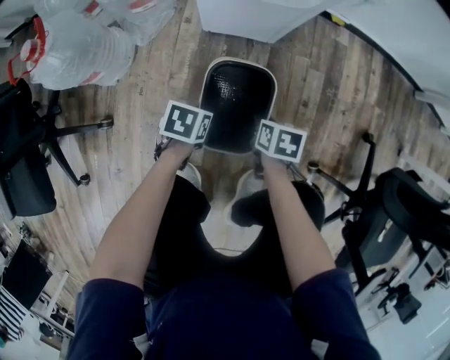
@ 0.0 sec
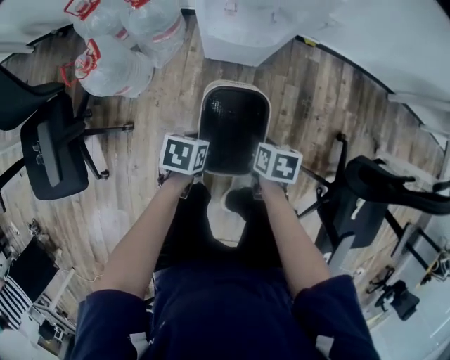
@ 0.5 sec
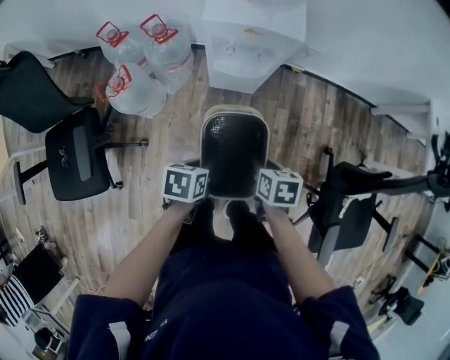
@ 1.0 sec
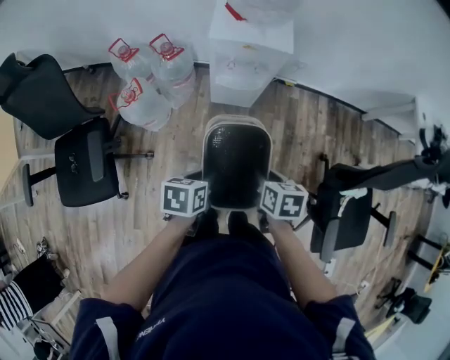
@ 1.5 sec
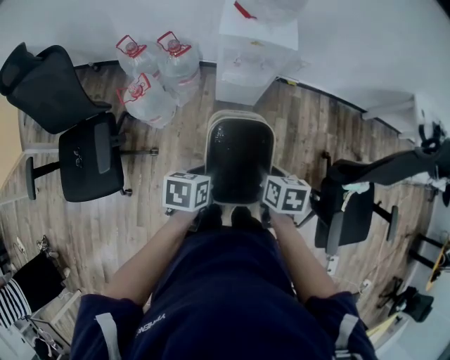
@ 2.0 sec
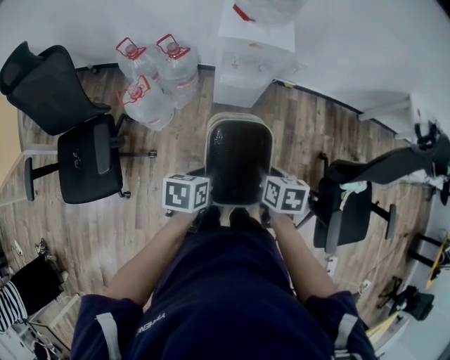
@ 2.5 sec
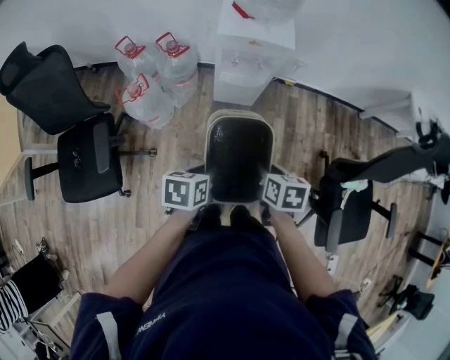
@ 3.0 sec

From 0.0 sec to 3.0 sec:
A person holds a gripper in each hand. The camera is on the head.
From 0.0 sec to 1.5 sec: Both grippers move upward, about 50 cm.
From 1.5 sec to 3.0 sec: The grippers stay close to where they were, moving slightly.

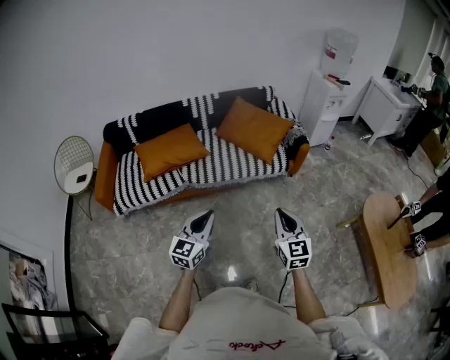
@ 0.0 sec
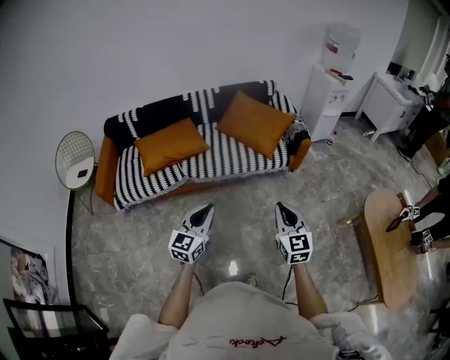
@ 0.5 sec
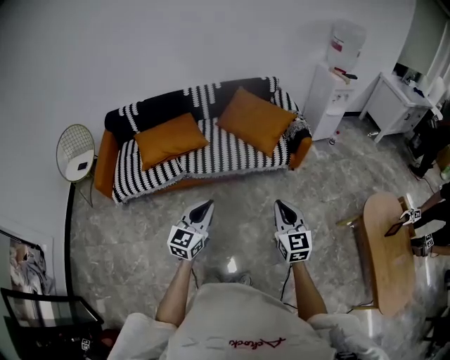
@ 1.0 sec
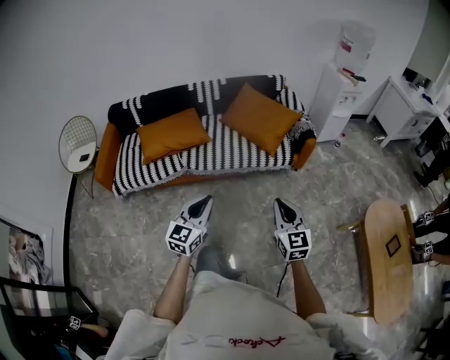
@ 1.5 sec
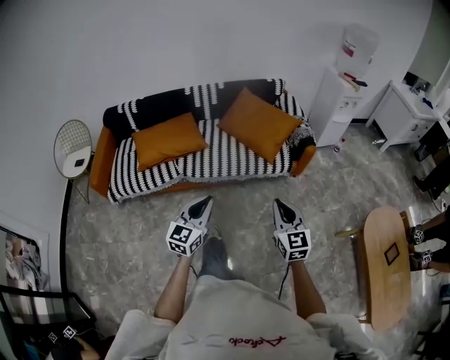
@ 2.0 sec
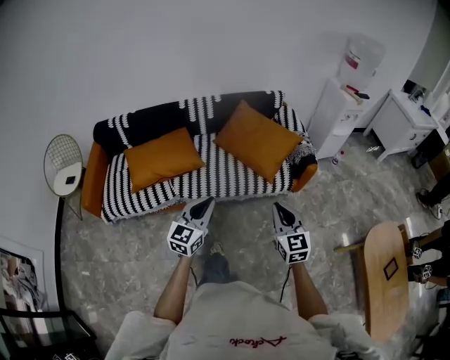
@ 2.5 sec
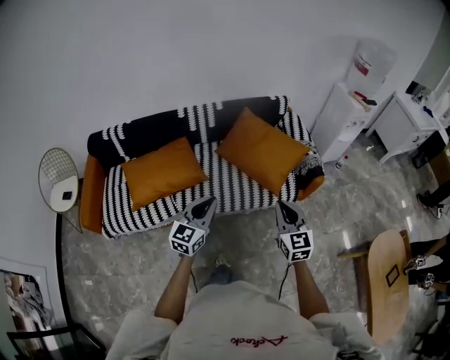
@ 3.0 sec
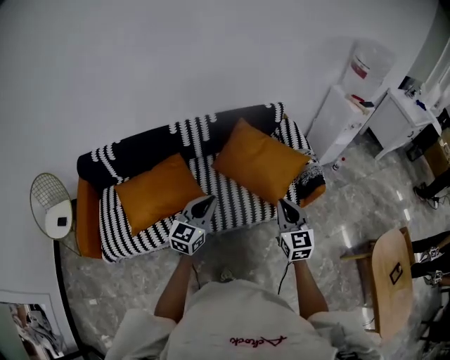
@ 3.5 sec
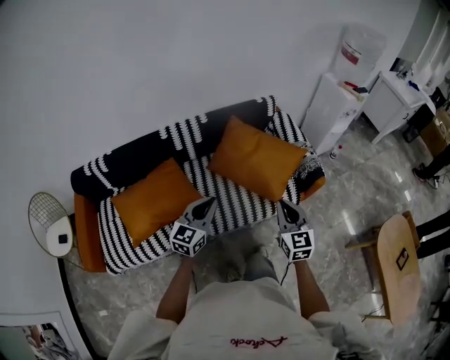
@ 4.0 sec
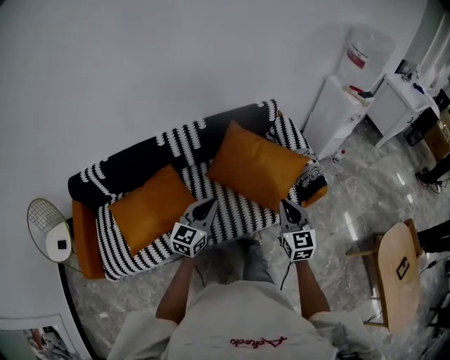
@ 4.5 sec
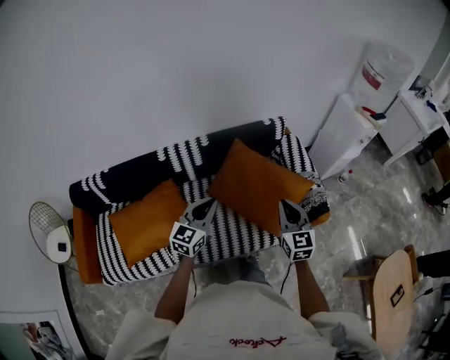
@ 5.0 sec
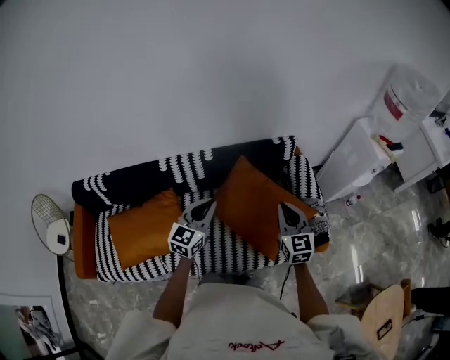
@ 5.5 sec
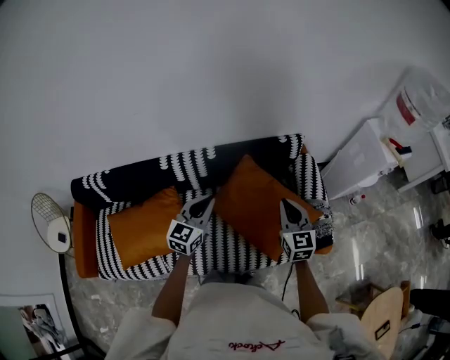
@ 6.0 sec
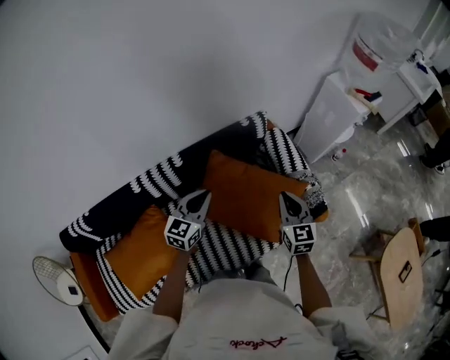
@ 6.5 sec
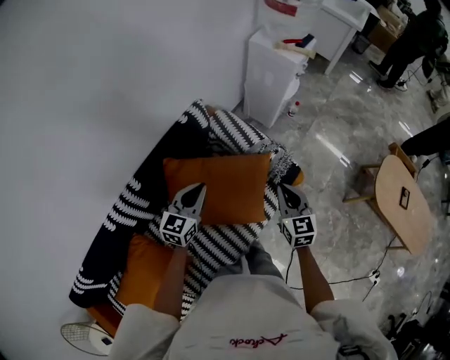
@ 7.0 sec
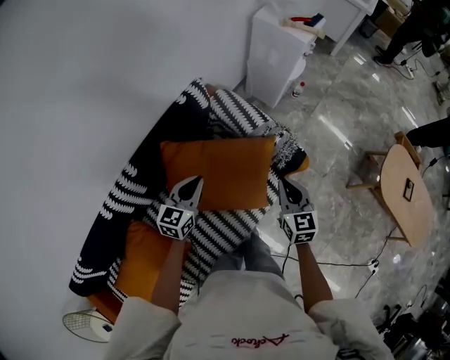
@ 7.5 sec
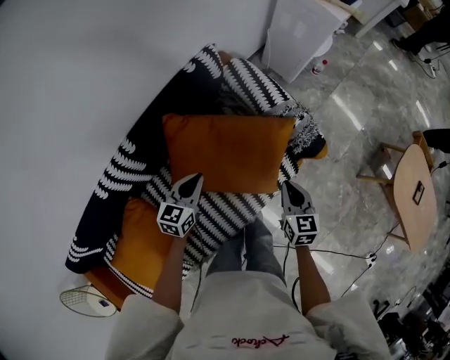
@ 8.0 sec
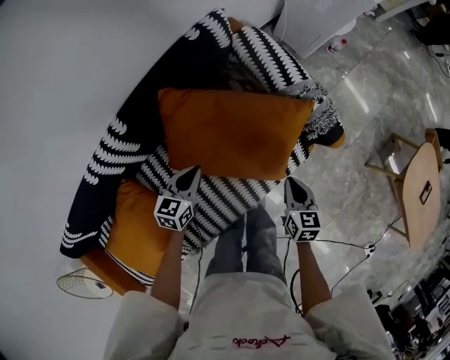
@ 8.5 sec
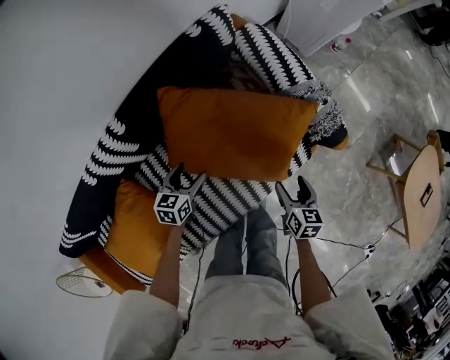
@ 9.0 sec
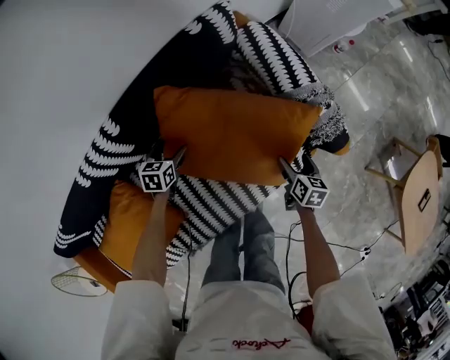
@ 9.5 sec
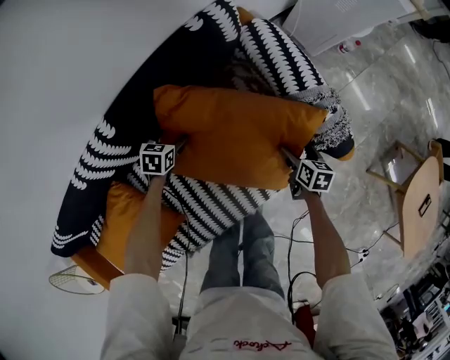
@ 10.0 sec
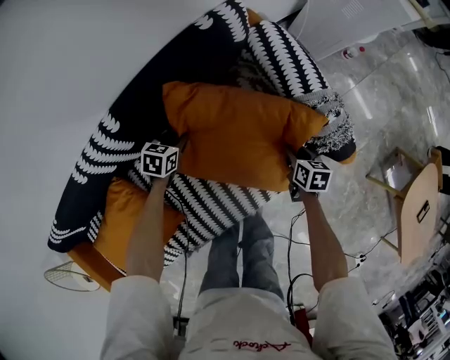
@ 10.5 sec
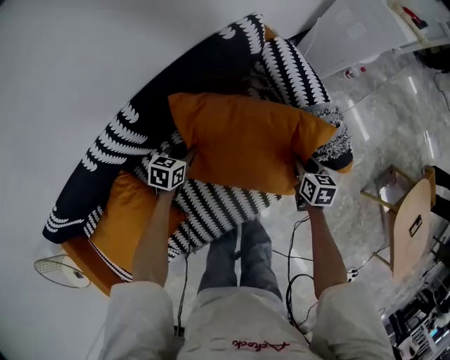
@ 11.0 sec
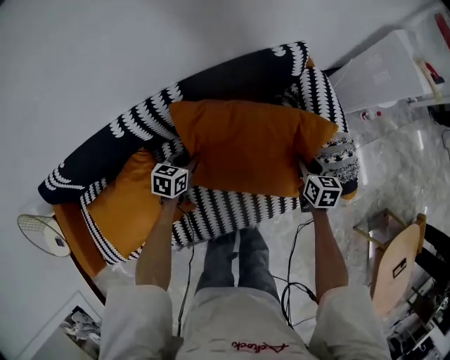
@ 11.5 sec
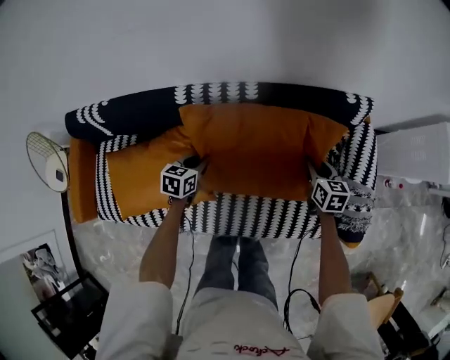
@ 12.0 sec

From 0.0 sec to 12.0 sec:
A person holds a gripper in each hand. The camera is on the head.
From 0.0 sec to 2.0 sec: The left gripper goes about 10 cm forward and to the right, while the right gripper goes approximately 10 cm forward.
From 2.0 sec to 4.0 sec: The two grippers go approximately 40 cm forward.
From 4.0 sec to 6.0 sec: Both grippers travel together forward, some 35 cm.
From 6.0 sec to 8.0 sec: Both grippers travel together downward, approximately 20 cm. The right gripper rotates roughly 50 degrees. Meanwhile the left gripper changes its angle by about 40 degrees.
From 8.0 sec to 10.0 sec: The right gripper shifts approximately 30 cm downward and forward, swivels some 30 degrees, and opens. The left gripper shifts approximately 30 cm downward and to the left, tilts its fingers approximately 30 degrees downward, and opens its fingers.
From 10.0 sec to 12.0 sec: The left gripper moves roughly 35 cm, changes its angle by approximately 40 degrees, and closes up. The right gripper changes place by about 35 cm, twists approximately 40 degrees counterclockwise, seen from behind, and closes its fingers.

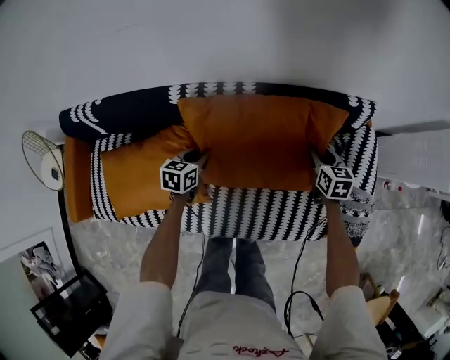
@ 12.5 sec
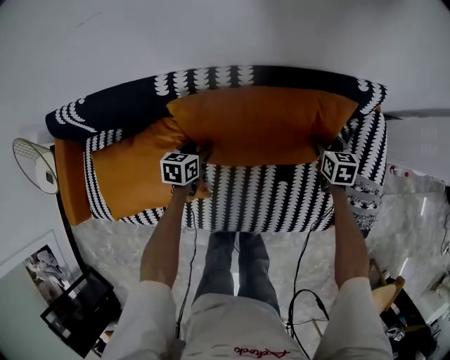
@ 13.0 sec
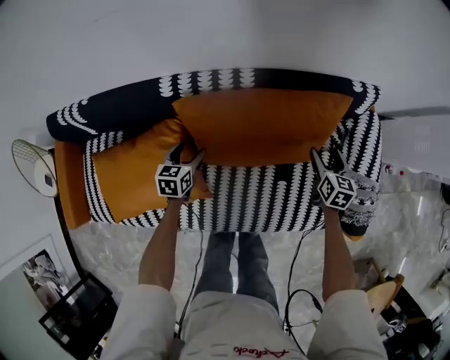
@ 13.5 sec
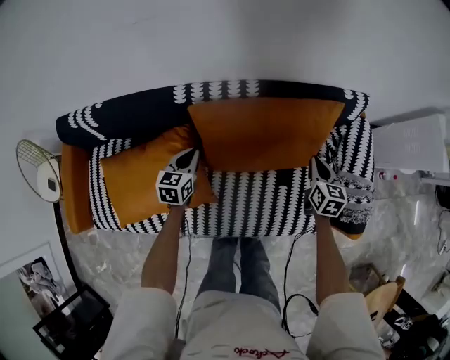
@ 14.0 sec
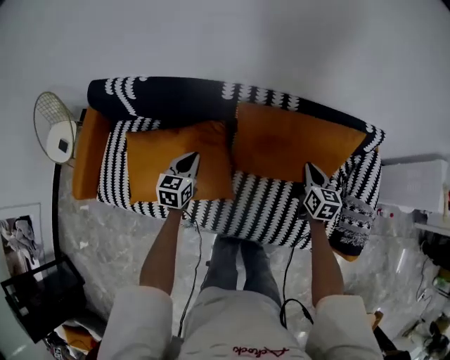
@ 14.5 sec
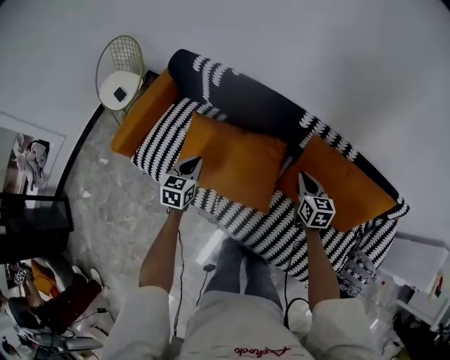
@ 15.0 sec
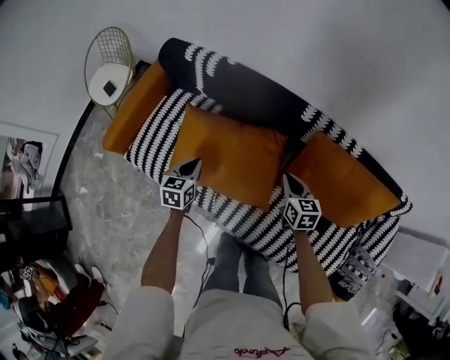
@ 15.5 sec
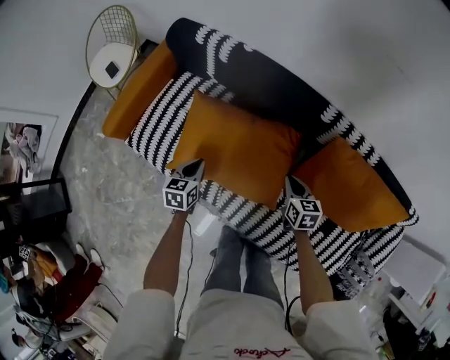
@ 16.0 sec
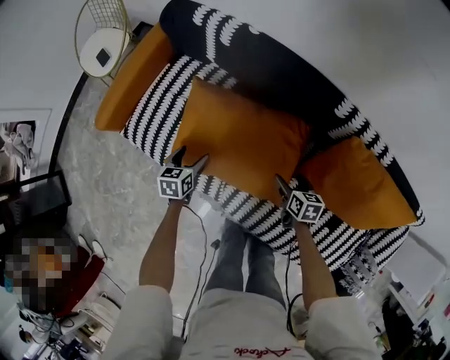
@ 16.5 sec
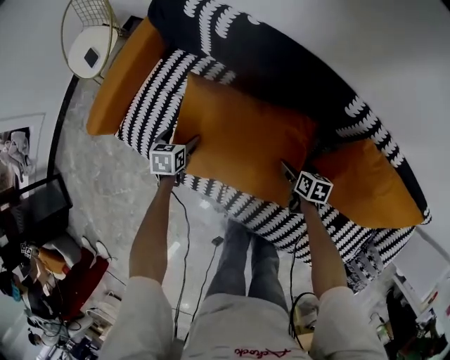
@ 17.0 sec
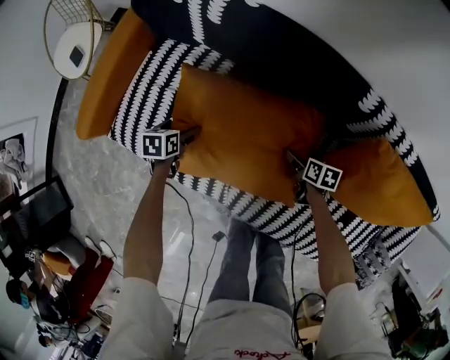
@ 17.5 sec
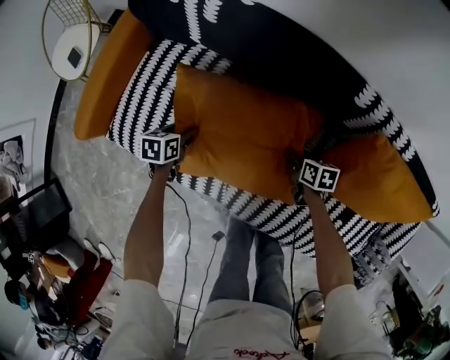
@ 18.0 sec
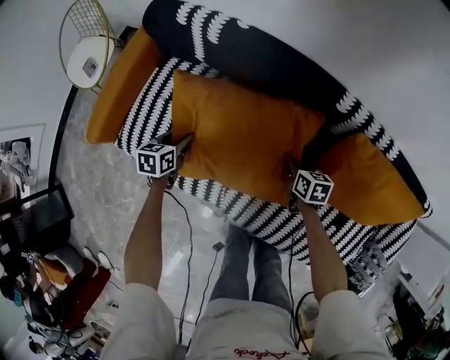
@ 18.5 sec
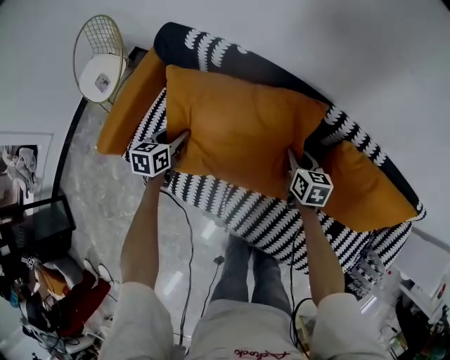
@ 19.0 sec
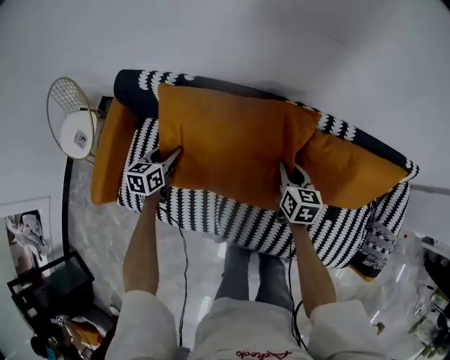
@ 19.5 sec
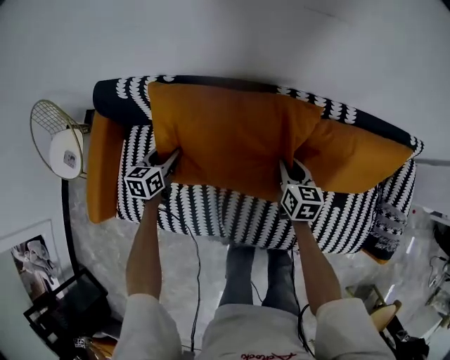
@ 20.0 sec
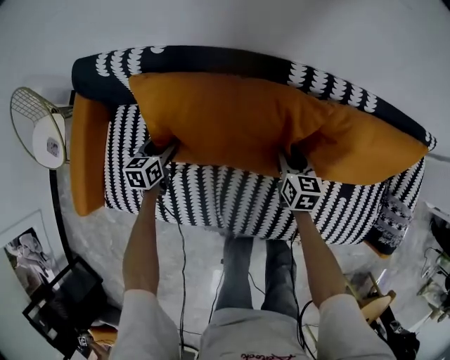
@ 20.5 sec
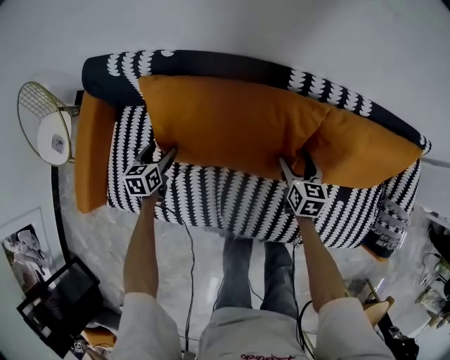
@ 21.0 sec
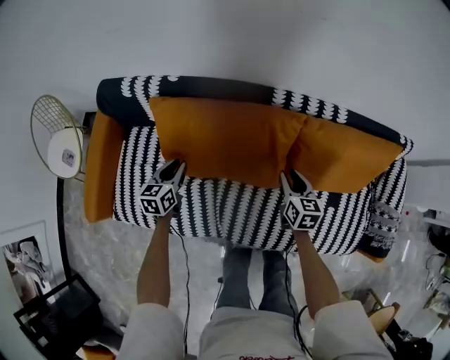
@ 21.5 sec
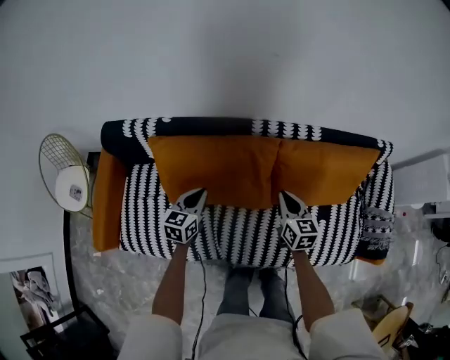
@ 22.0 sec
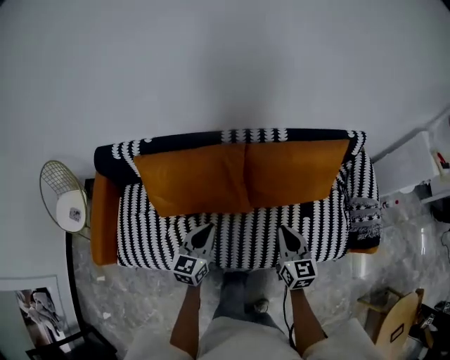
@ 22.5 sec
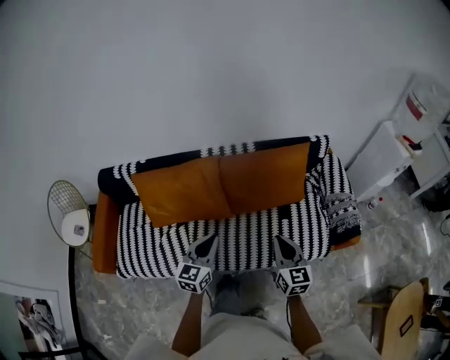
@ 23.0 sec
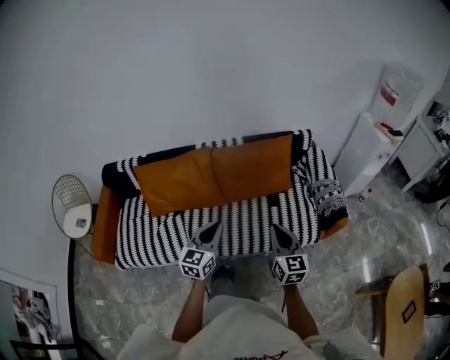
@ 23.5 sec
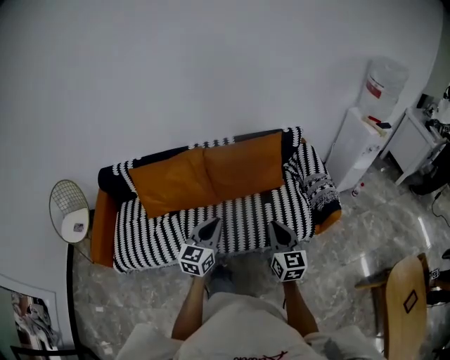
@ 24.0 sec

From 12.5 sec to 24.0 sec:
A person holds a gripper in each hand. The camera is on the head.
From 12.5 sec to 14.5 sec: Both grippers move to the left, backward and upward, roughly 20 cm. The left gripper rotates about 20 degrees, and opens and closes again. The right gripper opens, then closes again.
From 14.5 sec to 16.5 sec: The left gripper changes place by roughly 35 cm, swivels about 40 degrees, and opens up, while the right gripper ends up about 40 cm from where it was, changes its angle by approximately 40 degrees, and opens its fingers.
From 16.5 sec to 18.5 sec: Both grippers move forward, about 5 cm. The right gripper travels downward and back again, roughly 10 cm each way, and closes, while the left gripper moves some 10 cm downward and comes back, and closes up.
From 18.5 sec to 20.0 sec: The right gripper moves upward and to the right, roughly 15 cm, and turns by approximately 30 degrees. Meanwhile the left gripper shifts about 15 cm forward, to the right and upward, and turns by some 20 degrees.
From 20.0 sec to 22.0 sec: The right gripper goes some 10 cm upward and backward, and opens, then closes again. Meanwhile the left gripper goes roughly 20 cm to the right, upward and backward, and closes its fingers.
From 22.0 sec to 24.0 sec: The pair of grippers is taken backward and to the right, about 50 cm. Both grippers travel together upward, about 20 cm. The right gripper changes its angle by approximately 30 degrees. Meanwhile the left gripper changes its angle by some 30 degrees.
